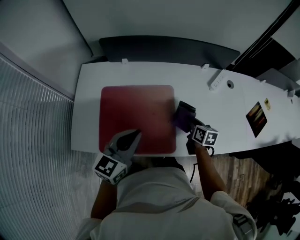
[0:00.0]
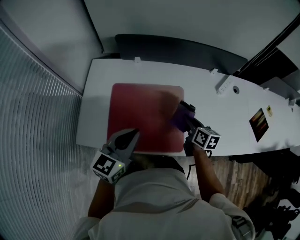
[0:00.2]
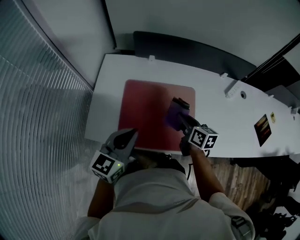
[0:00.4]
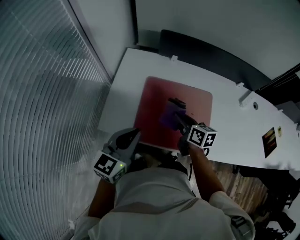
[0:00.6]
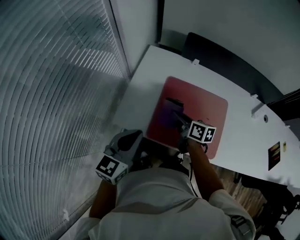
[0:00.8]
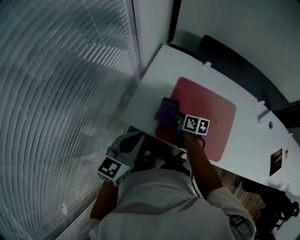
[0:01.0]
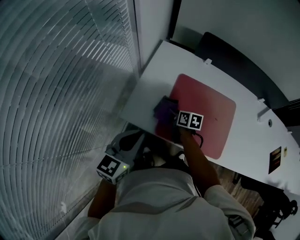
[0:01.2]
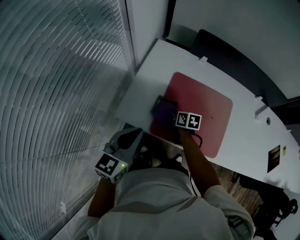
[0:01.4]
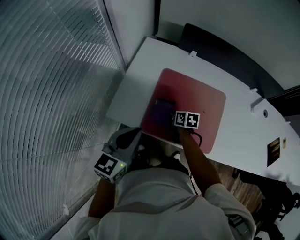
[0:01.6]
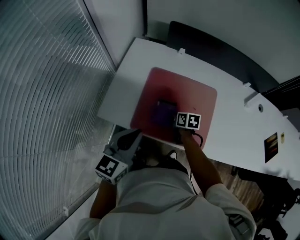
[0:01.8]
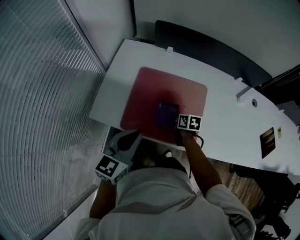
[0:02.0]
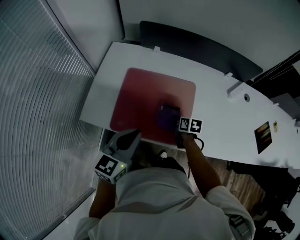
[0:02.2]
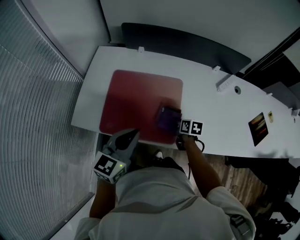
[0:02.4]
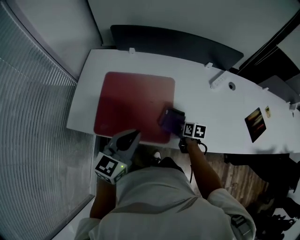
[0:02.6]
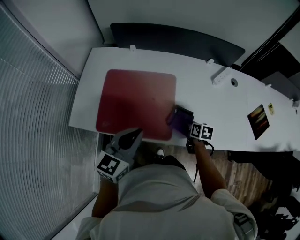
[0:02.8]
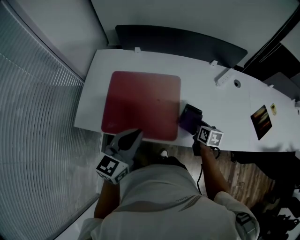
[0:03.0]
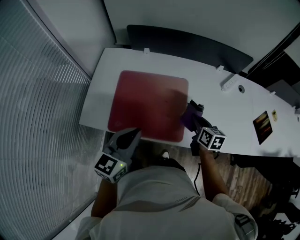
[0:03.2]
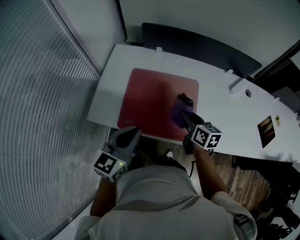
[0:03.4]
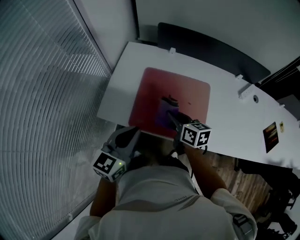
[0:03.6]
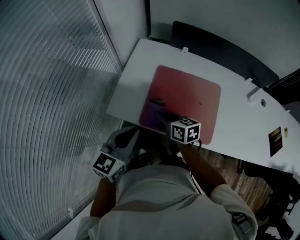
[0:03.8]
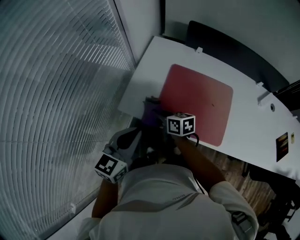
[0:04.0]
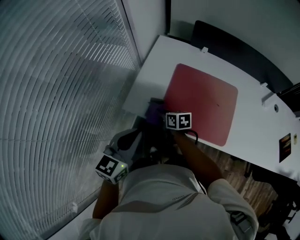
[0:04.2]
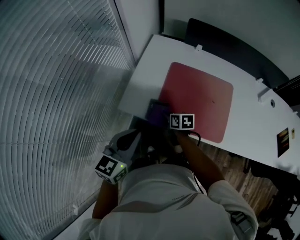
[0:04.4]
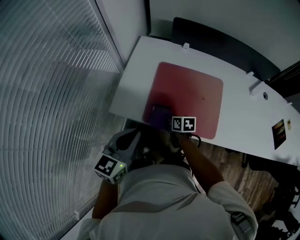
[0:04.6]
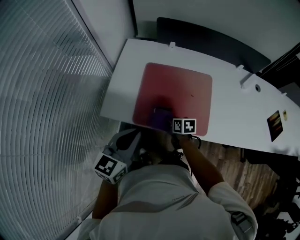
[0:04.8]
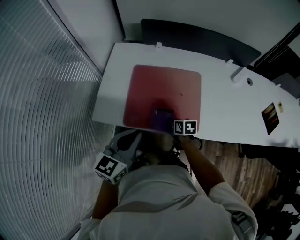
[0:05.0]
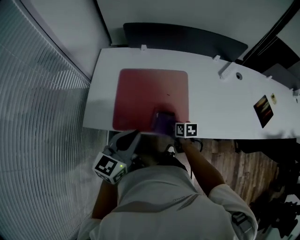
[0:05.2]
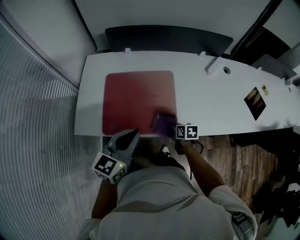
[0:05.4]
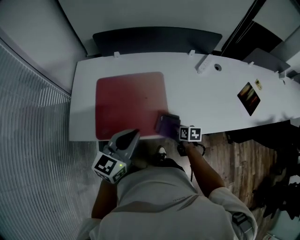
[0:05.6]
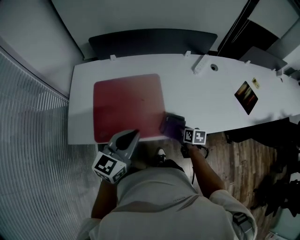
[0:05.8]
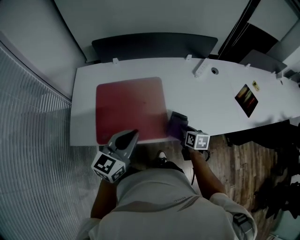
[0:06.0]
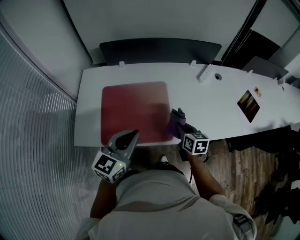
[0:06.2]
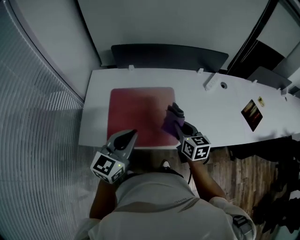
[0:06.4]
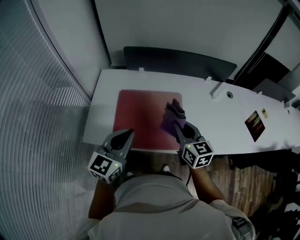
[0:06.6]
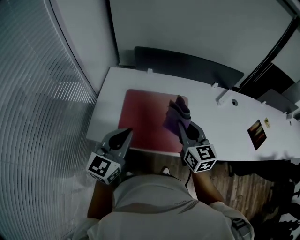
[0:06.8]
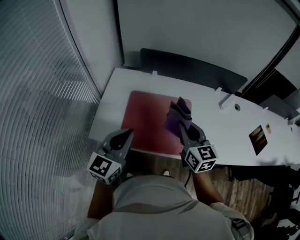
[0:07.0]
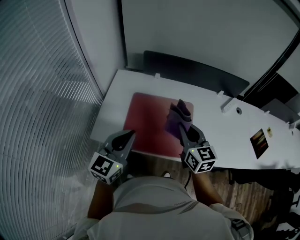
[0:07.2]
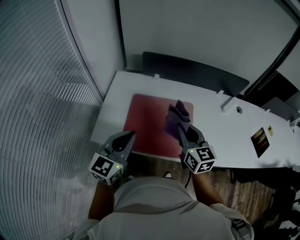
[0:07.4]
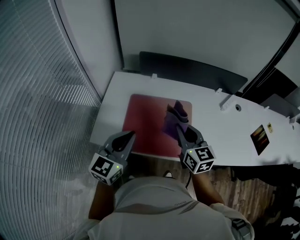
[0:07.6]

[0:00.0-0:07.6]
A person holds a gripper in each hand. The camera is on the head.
0:00.0 to 0:01.6: The left gripper moves roughly 30 cm, and swivels approximately 20 degrees. Meanwhile the right gripper ends up about 40 cm from where it was, and swivels approximately 30 degrees.
0:01.6 to 0:03.0: The right gripper is displaced to the right by approximately 40 cm, and turns by approximately 20 degrees; the left gripper heads to the right, covering roughly 25 cm.
0:03.0 to 0:04.6: The right gripper reaches about 10 cm upward, then returns, and changes its angle by some 30 degrees. The left gripper moves some 25 cm.
0:04.6 to 0:06.0: The right gripper moves some 40 cm, and swivels roughly 30 degrees. Meanwhile the left gripper changes place by about 25 cm, and turns by some 20 degrees.
0:06.0 to 0:07.6: The left gripper moves to the left, some 15 cm. The right gripper heads upward and to the left, covering about 30 cm, and changes its angle by approximately 40 degrees.

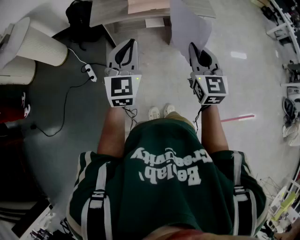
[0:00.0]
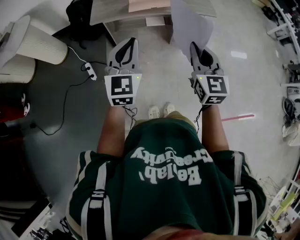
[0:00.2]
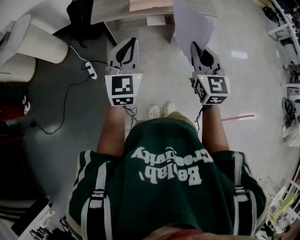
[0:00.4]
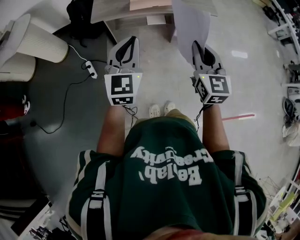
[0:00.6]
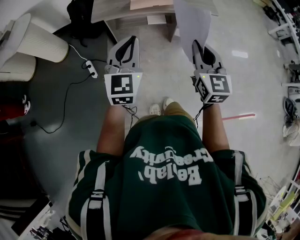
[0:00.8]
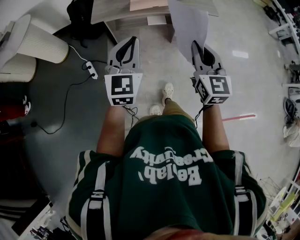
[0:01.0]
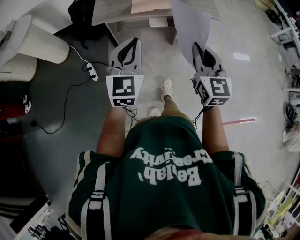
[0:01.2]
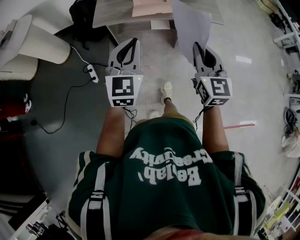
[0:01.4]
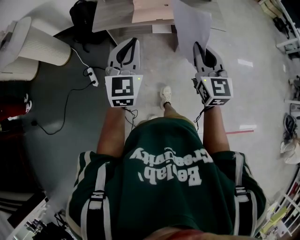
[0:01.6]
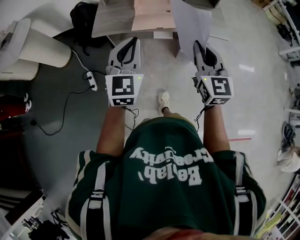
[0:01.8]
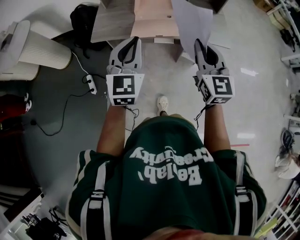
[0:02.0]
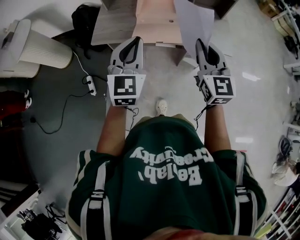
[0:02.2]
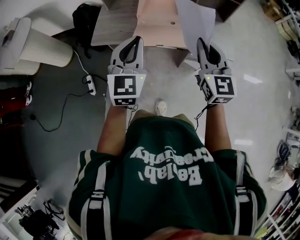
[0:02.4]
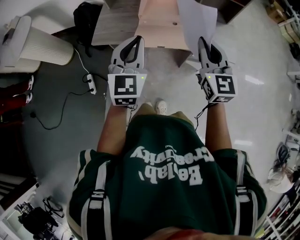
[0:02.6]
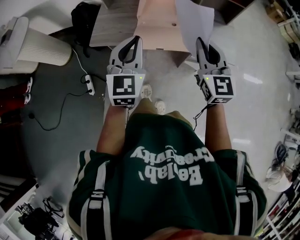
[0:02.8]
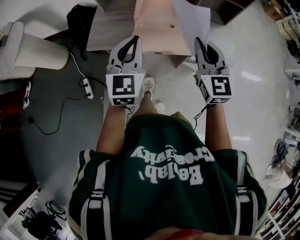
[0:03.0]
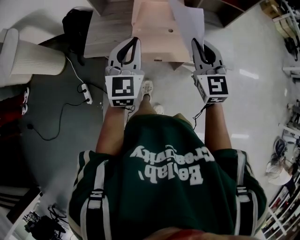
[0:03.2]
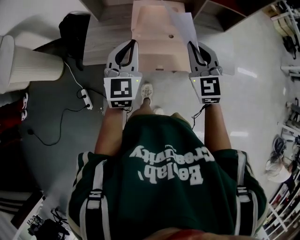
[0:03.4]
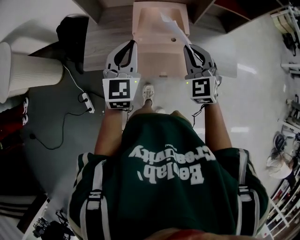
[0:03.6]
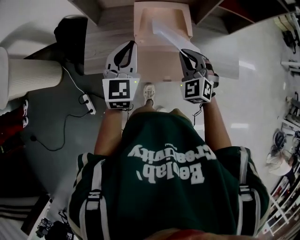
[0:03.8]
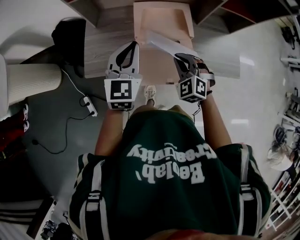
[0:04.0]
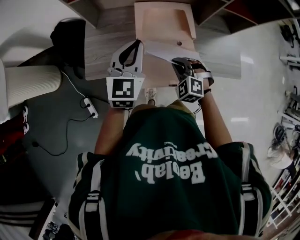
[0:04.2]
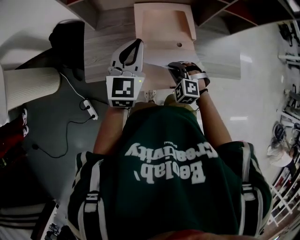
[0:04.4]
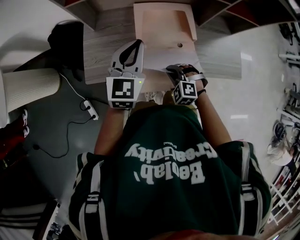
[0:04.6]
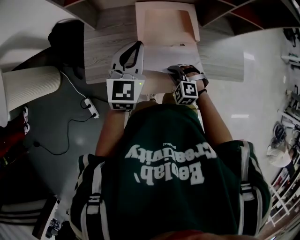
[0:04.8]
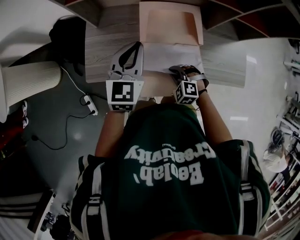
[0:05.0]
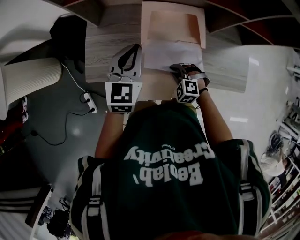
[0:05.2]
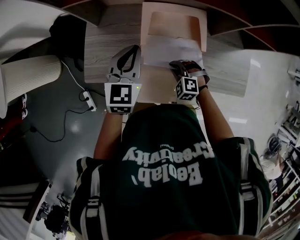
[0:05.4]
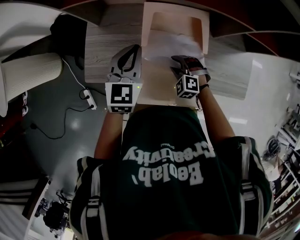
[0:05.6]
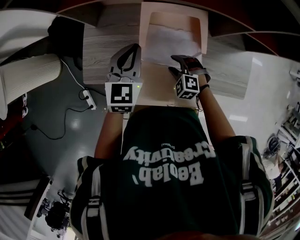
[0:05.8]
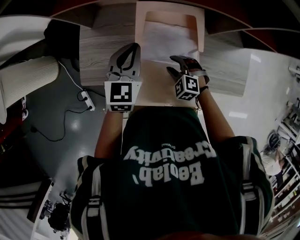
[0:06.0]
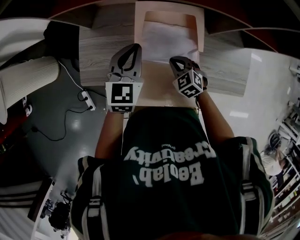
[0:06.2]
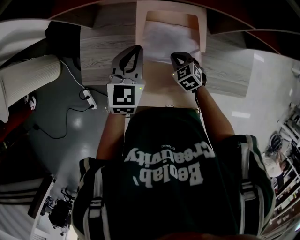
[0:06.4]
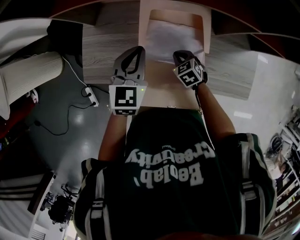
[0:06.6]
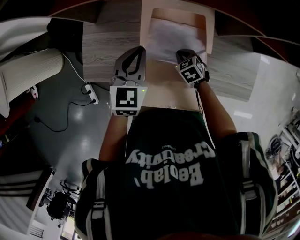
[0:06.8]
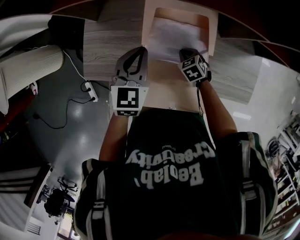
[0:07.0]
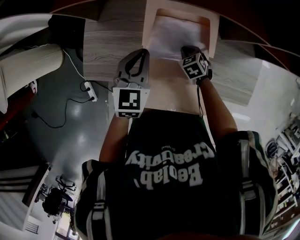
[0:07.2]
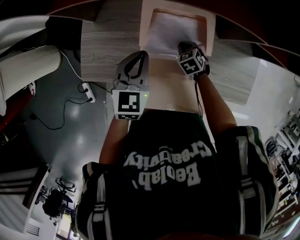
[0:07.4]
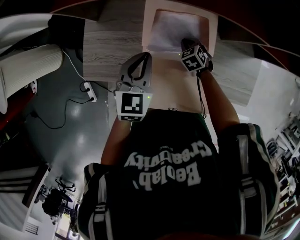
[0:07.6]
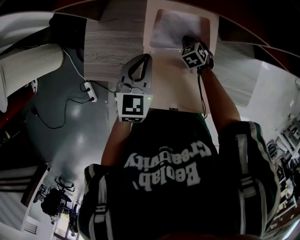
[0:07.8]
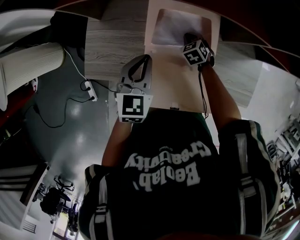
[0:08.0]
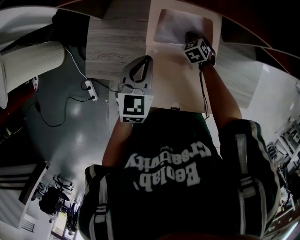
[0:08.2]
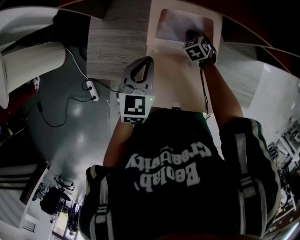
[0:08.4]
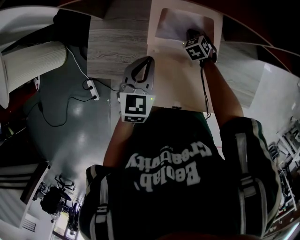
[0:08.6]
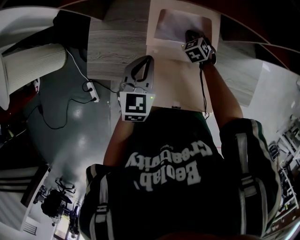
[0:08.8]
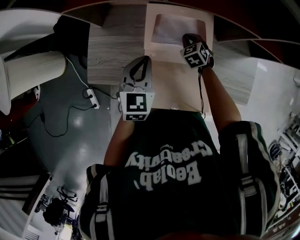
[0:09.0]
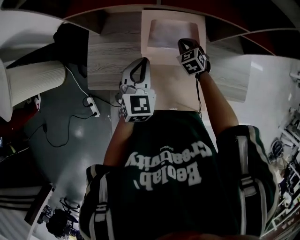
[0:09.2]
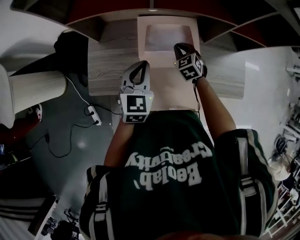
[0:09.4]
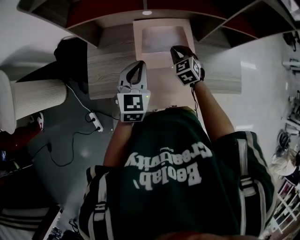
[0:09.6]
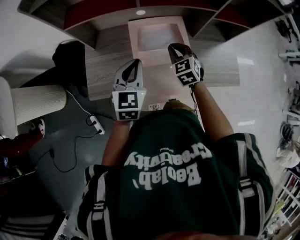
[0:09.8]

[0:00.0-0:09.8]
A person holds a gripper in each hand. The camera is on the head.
0:00.0 to 0:01.4: Both grippers travel together forward, about 10 cm.
0:01.4 to 0:02.8: Both grippers move forward, some 35 cm.
0:02.8 to 0:04.2: The left gripper shifts roughly 30 cm forward. The right gripper moves downward, forward and to the left, approximately 35 cm, and tilts its fingers approximately 40 degrees downward.
0:04.2 to 0:05.6: Both grippers travel together forward and downward, roughly 15 cm. The right gripper opens its fingers.
0:05.6 to 0:07.0: The right gripper travels downward, to the right and forward by about 10 cm, rolls clockwise, seen from behind, by roughly 40 degrees, and closes up. Meanwhile the left gripper changes place by approximately 5 cm.
0:07.0 to 0:08.4: The right gripper moves forward, roughly 10 cm.
0:08.4 to 0:09.8: The right gripper is displaced upward and backward by about 30 cm, and swivels about 30 degrees. The left gripper moves upward and backward, about 15 cm.

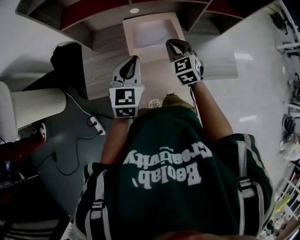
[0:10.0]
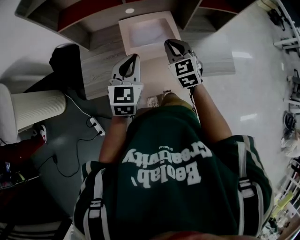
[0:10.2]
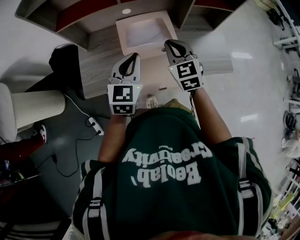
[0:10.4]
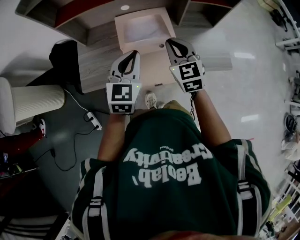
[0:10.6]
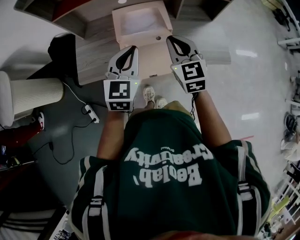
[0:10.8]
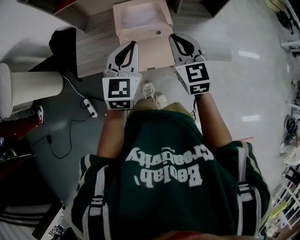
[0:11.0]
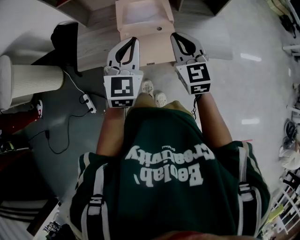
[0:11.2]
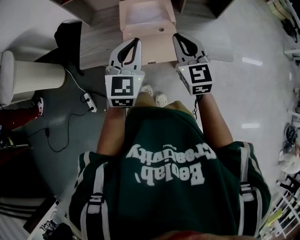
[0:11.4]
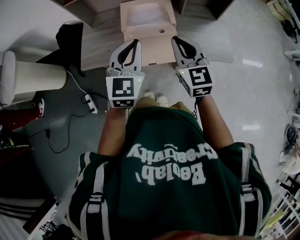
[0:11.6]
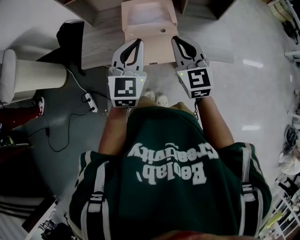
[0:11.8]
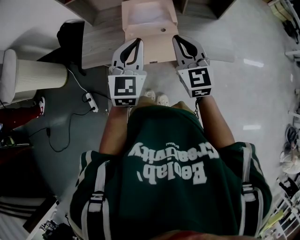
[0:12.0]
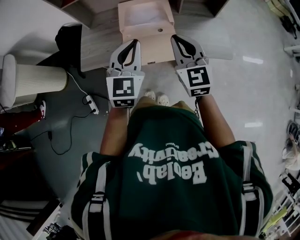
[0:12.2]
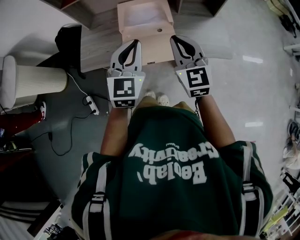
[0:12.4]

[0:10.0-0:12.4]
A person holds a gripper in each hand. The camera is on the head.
0:10.0 to 0:11.2: The left gripper is displaced backward and to the right by some 20 cm. Meanwhile the right gripper heads backward, to the right and upward, covering some 25 cm, and swivels approximately 20 degrees.
0:11.2 to 0:12.4: The grippers make only small movements.

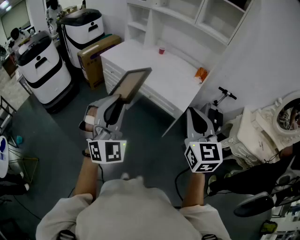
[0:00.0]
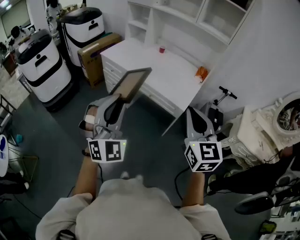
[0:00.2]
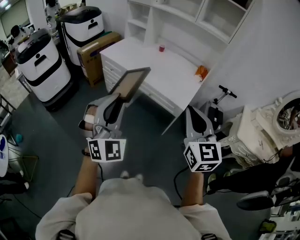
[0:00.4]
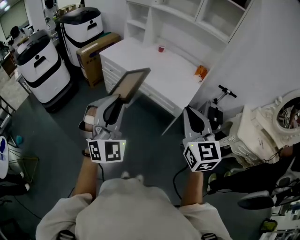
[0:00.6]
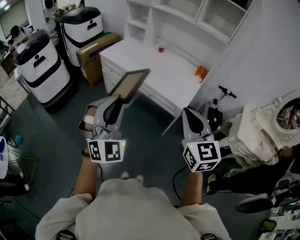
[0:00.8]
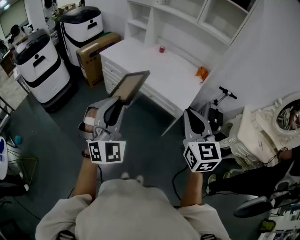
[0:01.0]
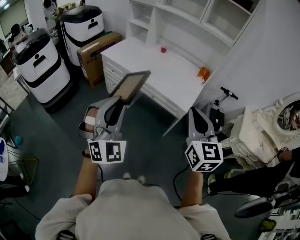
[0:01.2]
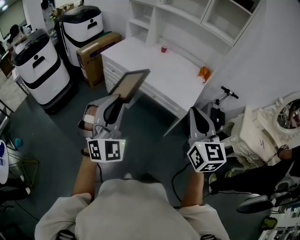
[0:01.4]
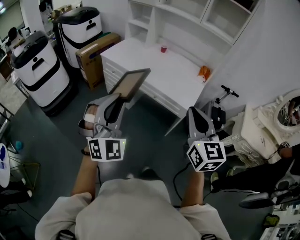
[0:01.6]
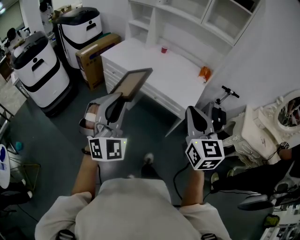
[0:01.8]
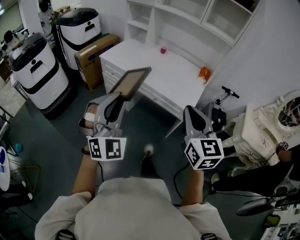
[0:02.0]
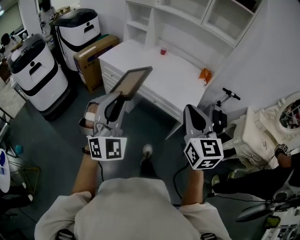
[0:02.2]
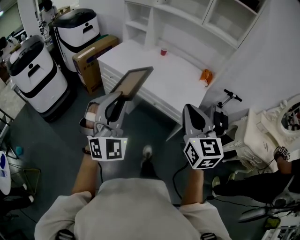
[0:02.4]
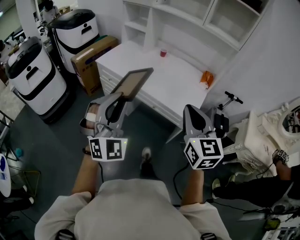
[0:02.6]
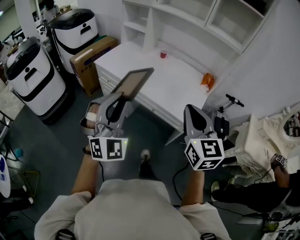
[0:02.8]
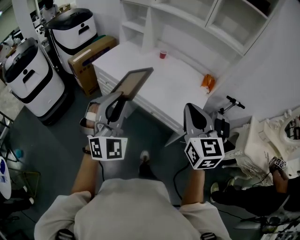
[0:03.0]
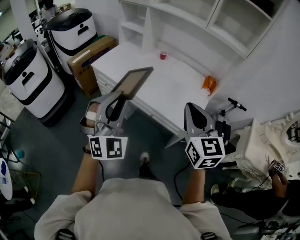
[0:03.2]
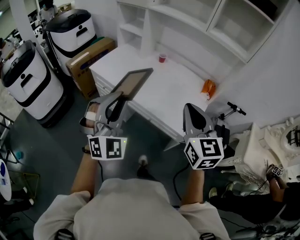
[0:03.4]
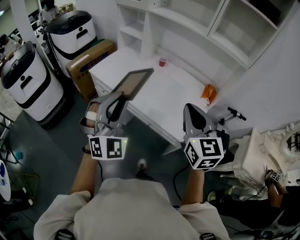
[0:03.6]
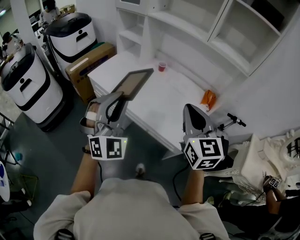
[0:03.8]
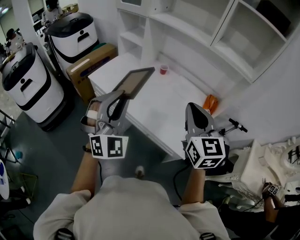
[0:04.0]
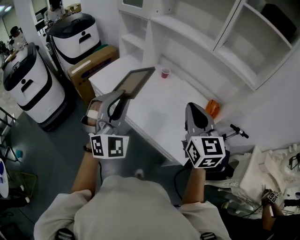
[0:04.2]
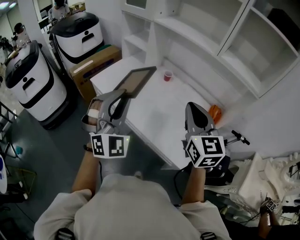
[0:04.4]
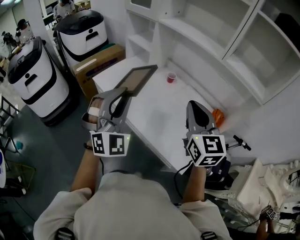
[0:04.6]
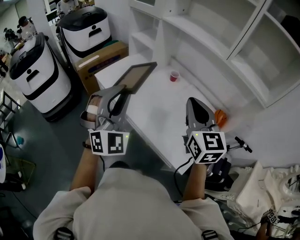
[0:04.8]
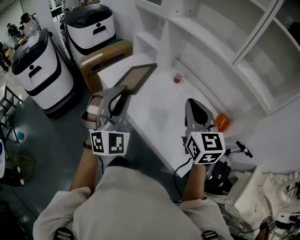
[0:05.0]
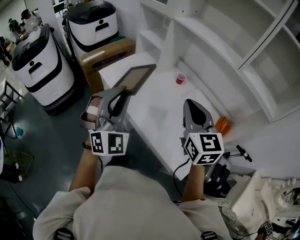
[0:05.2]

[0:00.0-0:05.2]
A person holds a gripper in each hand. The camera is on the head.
0:00.0 to 0:01.8: The right gripper is displaced to the left by about 5 cm. Meanwhile the left gripper heads to the left and forward, covering some 10 cm.
0:01.8 to 0:03.4: Both grippers travel together forward, roughly 25 cm.
0:03.4 to 0:05.2: The two grippers go roughly 25 cm forward.
